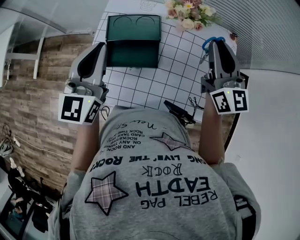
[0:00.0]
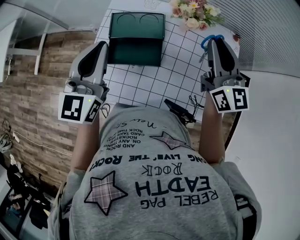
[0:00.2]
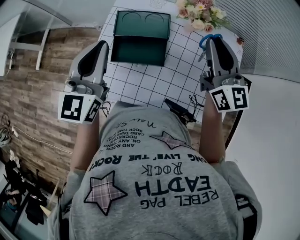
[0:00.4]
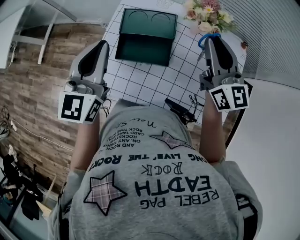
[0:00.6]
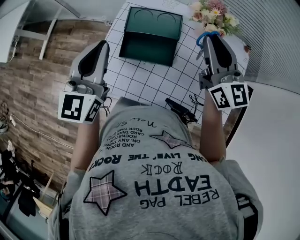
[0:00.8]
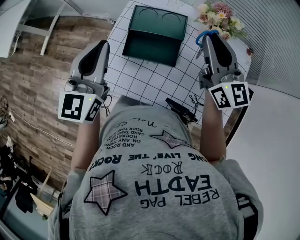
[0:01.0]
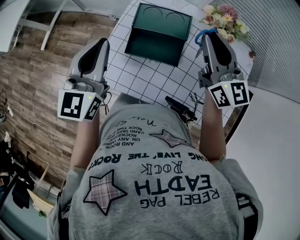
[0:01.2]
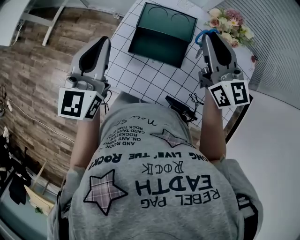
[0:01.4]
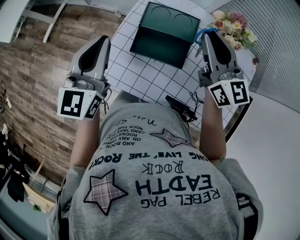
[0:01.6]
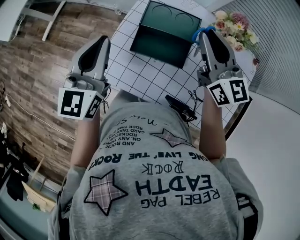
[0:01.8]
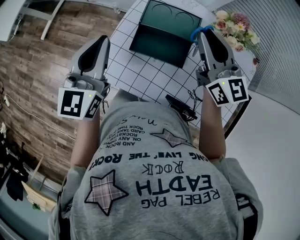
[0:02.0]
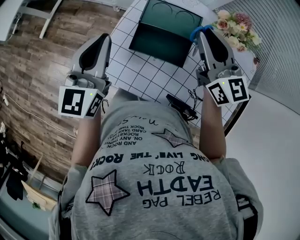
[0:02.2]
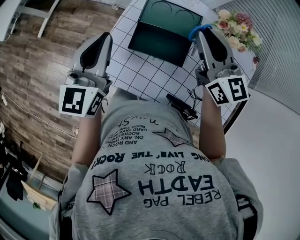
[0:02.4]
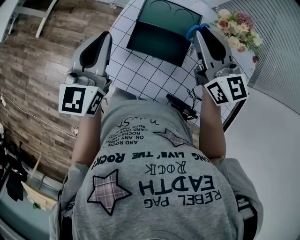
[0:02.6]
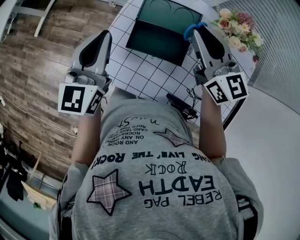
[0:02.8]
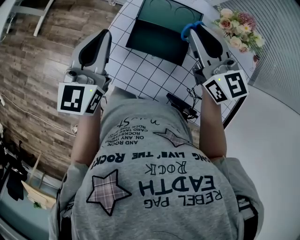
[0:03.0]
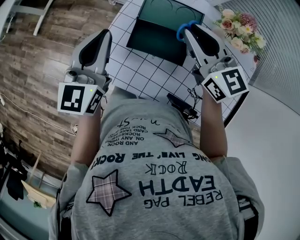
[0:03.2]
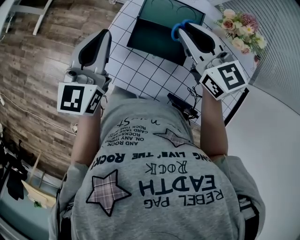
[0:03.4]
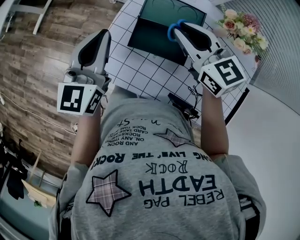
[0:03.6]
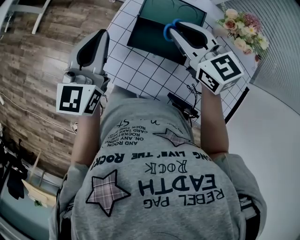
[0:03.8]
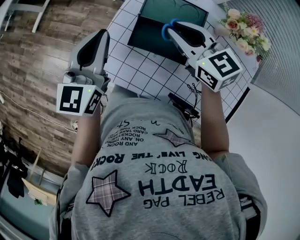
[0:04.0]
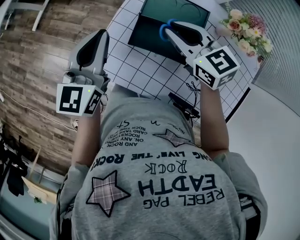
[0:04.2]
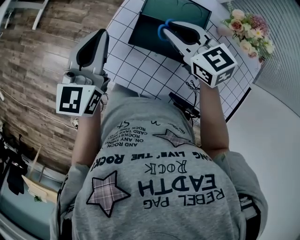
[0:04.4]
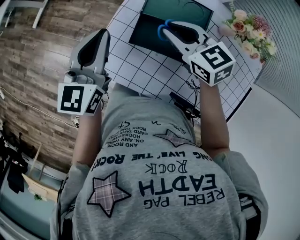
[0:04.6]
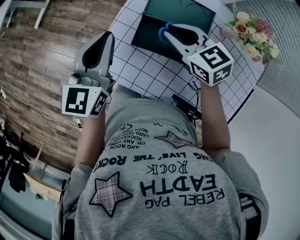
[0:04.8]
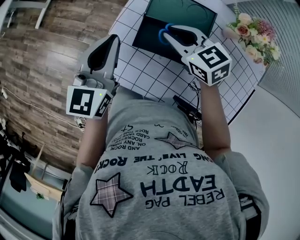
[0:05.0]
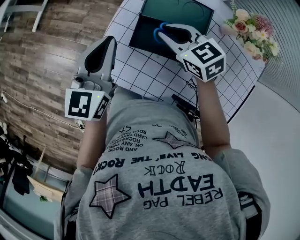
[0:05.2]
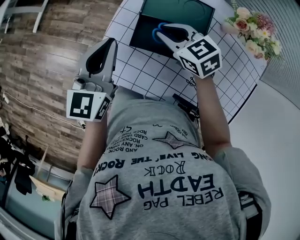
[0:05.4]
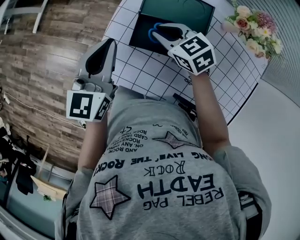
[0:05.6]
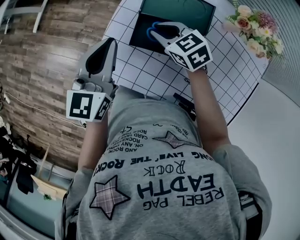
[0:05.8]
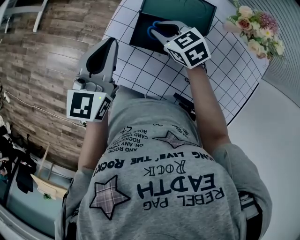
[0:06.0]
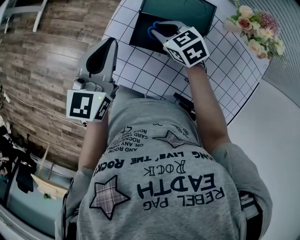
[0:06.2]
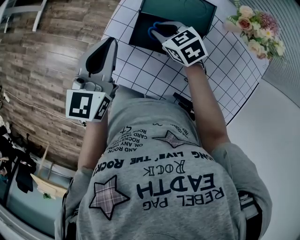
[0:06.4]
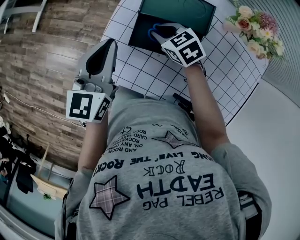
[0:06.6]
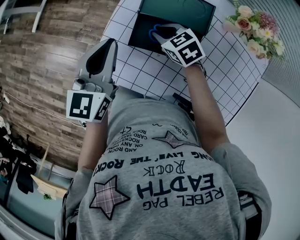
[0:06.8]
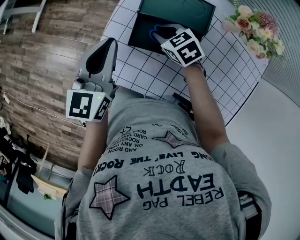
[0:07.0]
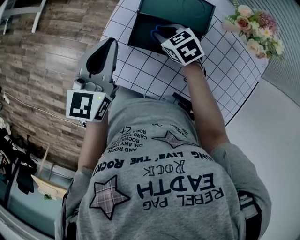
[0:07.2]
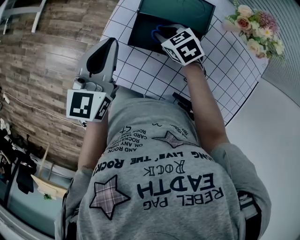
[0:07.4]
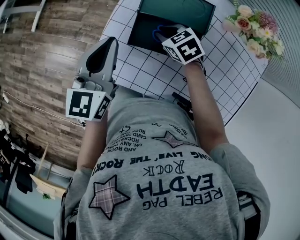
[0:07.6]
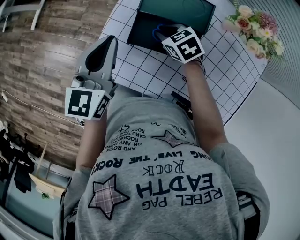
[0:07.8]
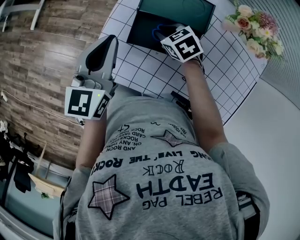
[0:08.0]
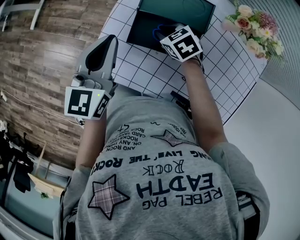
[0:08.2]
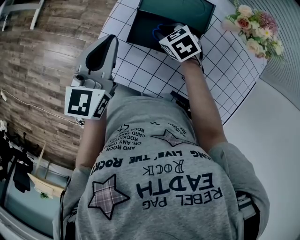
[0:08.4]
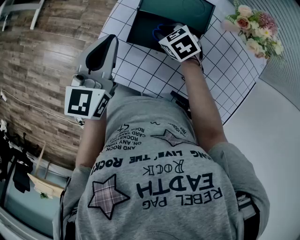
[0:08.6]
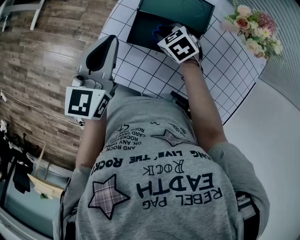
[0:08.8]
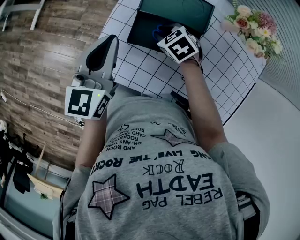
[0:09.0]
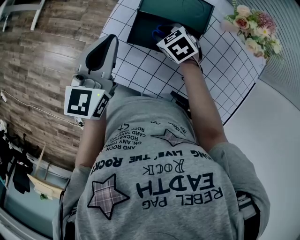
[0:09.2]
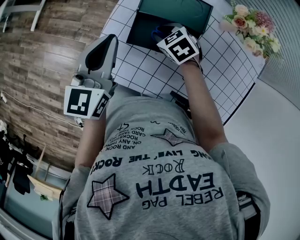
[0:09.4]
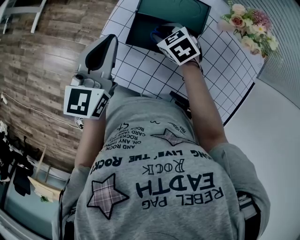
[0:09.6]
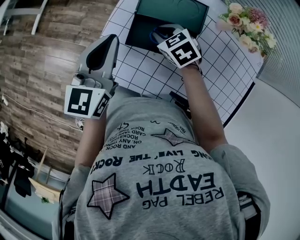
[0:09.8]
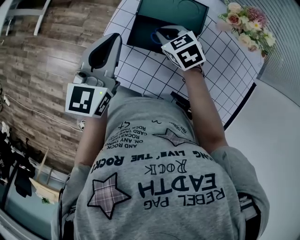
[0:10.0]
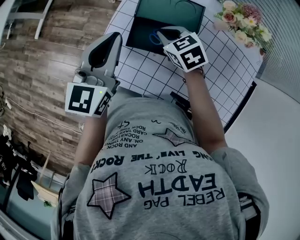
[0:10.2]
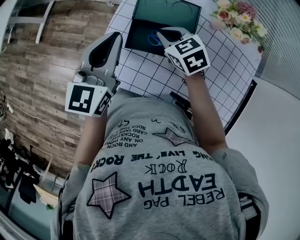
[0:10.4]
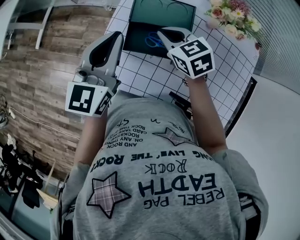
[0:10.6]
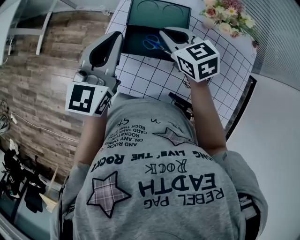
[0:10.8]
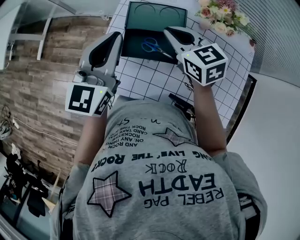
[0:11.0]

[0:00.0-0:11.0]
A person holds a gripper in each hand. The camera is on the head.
0:00.0 to 0:01.6: The two grippers go roughly 10 cm to the left. The right gripper changes its angle by about 20 degrees.
0:01.6 to 0:03.2: The left gripper shifts by approximately 5 cm. The right gripper goes about 10 cm downward and to the left.
0:03.2 to 0:04.8: The right gripper is displaced downward and to the left by some 10 cm, and turns by about 20 degrees.
0:04.8 to 0:06.2: The right gripper goes about 10 cm downward.
0:06.2 to 0:09.4: The grippers stay close to where they were, moving slightly.
0:09.4 to 0:11.0: The left gripper goes some 10 cm upward and to the right. Meanwhile the right gripper shifts some 20 cm upward, swivels approximately 40 degrees, and closes up.

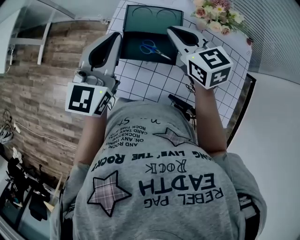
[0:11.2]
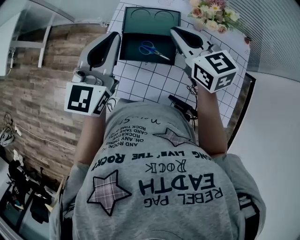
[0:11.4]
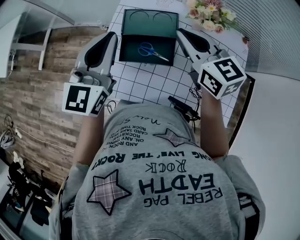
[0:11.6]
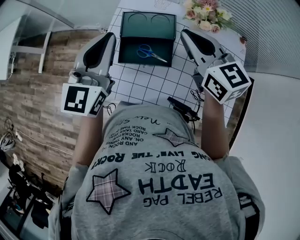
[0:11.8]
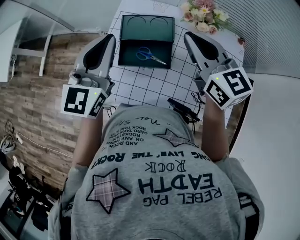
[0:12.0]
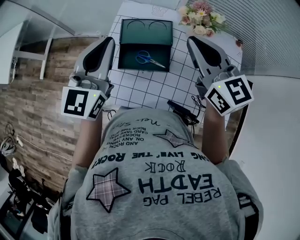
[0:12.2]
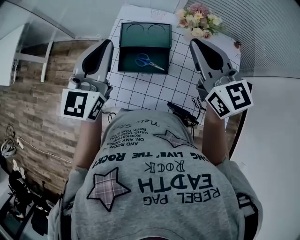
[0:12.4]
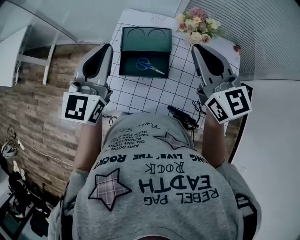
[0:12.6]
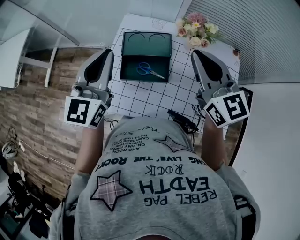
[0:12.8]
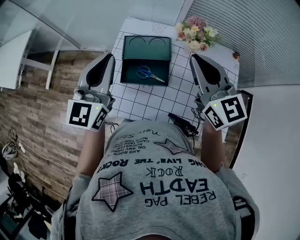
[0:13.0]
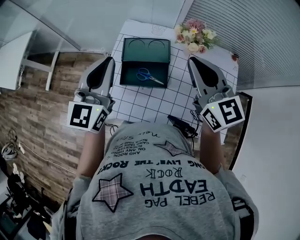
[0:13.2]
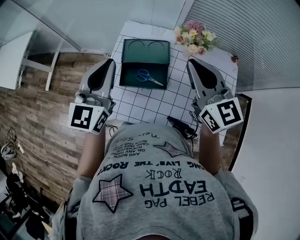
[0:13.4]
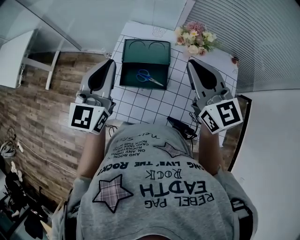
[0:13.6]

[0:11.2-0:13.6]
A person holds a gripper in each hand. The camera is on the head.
0:11.2 to 0:12.4: The left gripper is displaced upward by roughly 5 cm. The right gripper is displaced upward, to the right and backward by some 15 cm, and rotates approximately 20 degrees.
0:12.4 to 0:13.6: There are only small adjustments of the grippers.

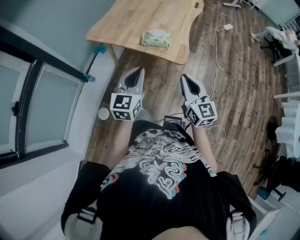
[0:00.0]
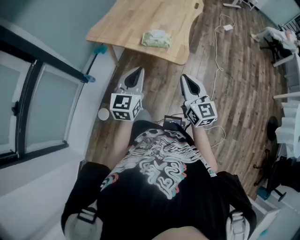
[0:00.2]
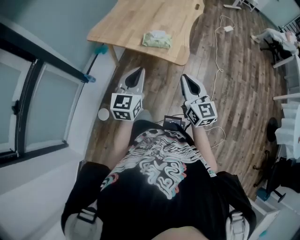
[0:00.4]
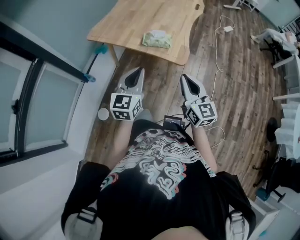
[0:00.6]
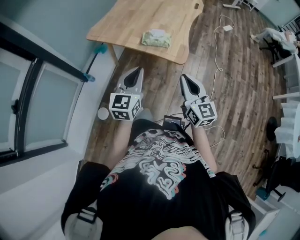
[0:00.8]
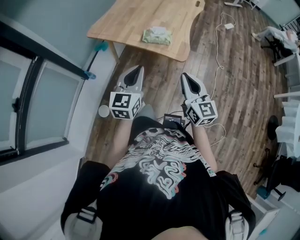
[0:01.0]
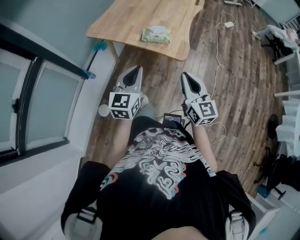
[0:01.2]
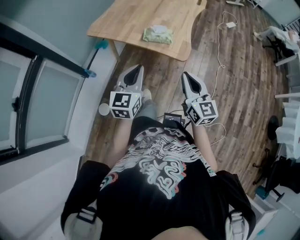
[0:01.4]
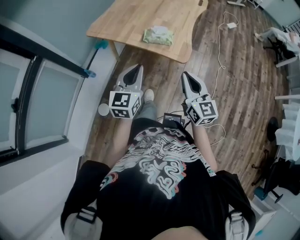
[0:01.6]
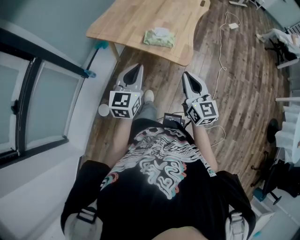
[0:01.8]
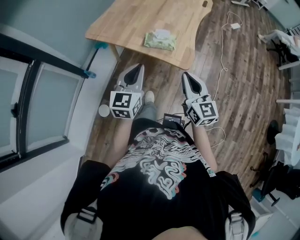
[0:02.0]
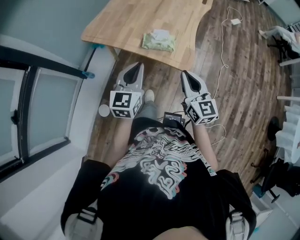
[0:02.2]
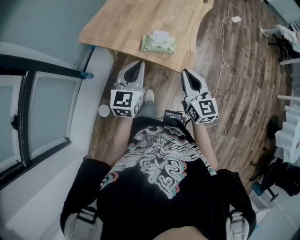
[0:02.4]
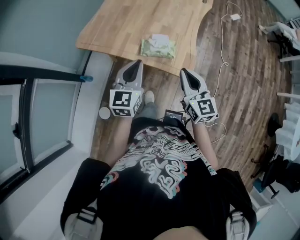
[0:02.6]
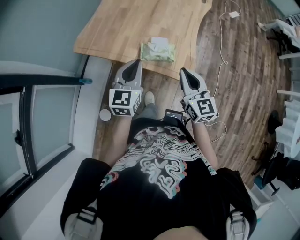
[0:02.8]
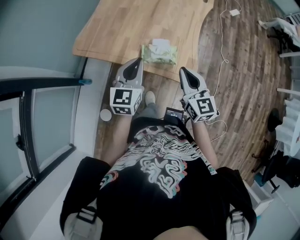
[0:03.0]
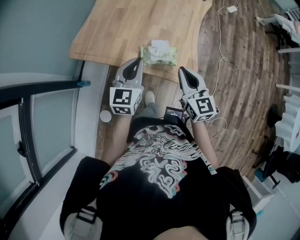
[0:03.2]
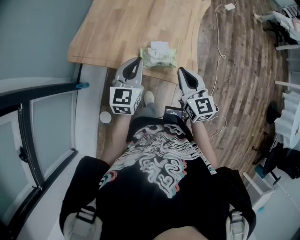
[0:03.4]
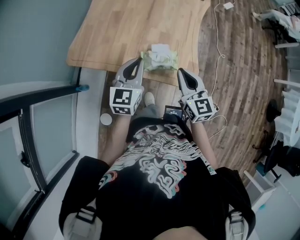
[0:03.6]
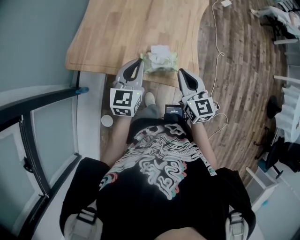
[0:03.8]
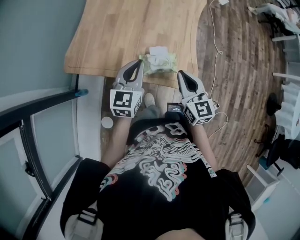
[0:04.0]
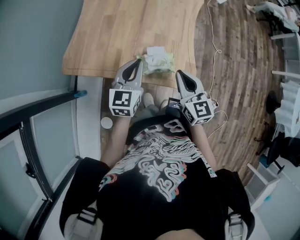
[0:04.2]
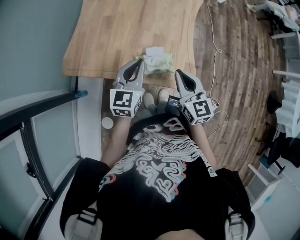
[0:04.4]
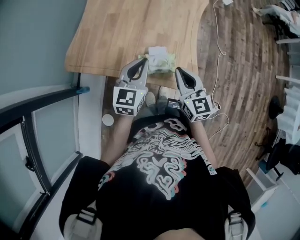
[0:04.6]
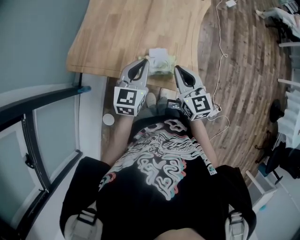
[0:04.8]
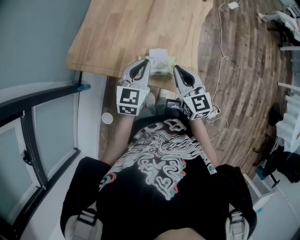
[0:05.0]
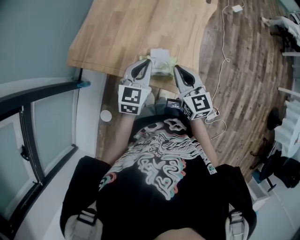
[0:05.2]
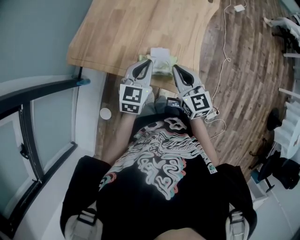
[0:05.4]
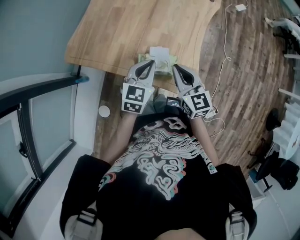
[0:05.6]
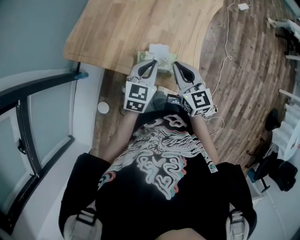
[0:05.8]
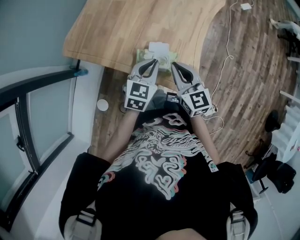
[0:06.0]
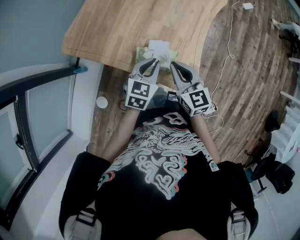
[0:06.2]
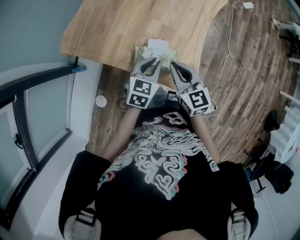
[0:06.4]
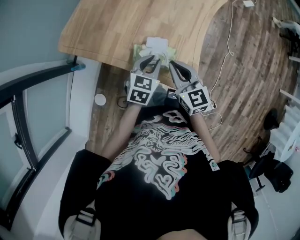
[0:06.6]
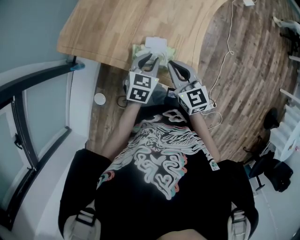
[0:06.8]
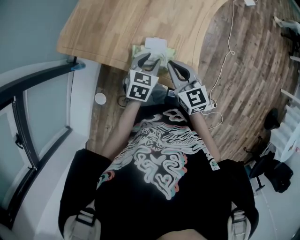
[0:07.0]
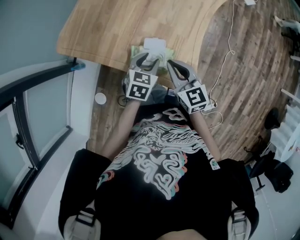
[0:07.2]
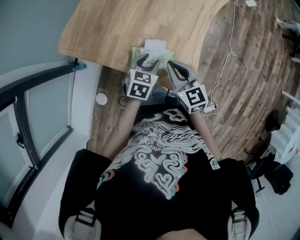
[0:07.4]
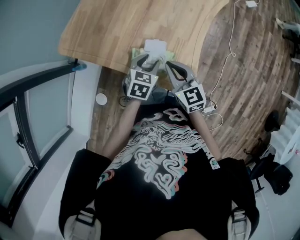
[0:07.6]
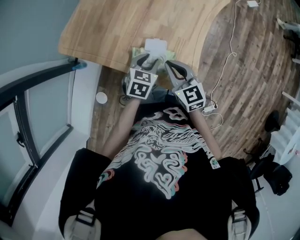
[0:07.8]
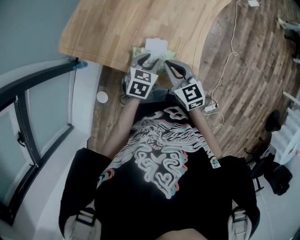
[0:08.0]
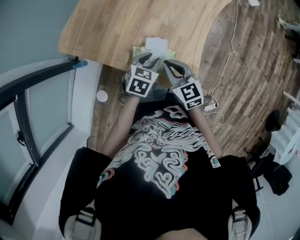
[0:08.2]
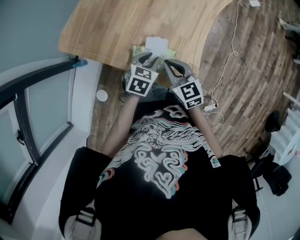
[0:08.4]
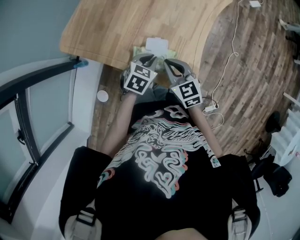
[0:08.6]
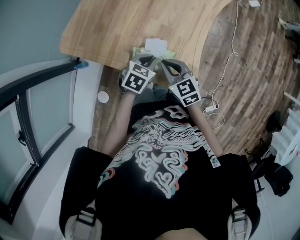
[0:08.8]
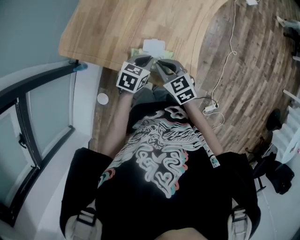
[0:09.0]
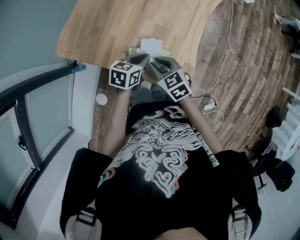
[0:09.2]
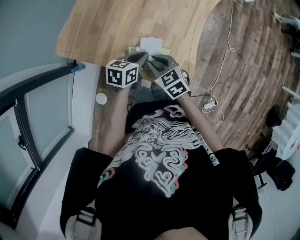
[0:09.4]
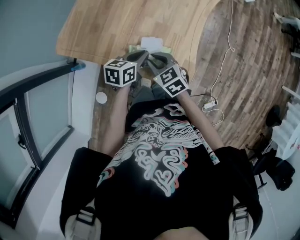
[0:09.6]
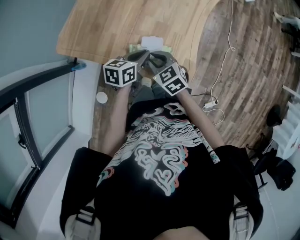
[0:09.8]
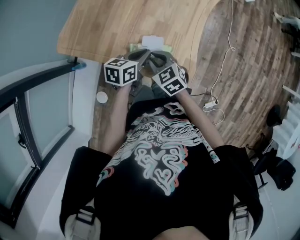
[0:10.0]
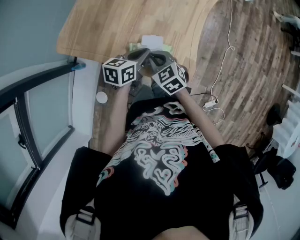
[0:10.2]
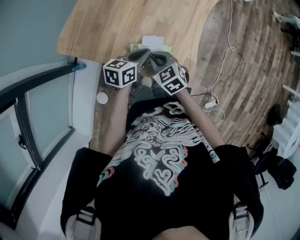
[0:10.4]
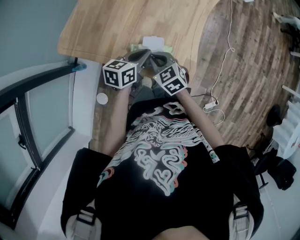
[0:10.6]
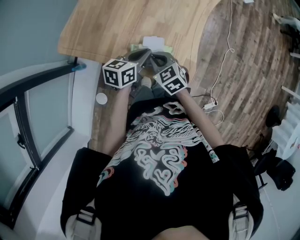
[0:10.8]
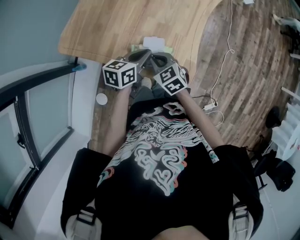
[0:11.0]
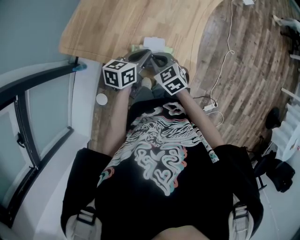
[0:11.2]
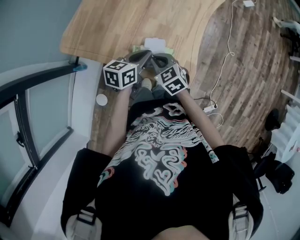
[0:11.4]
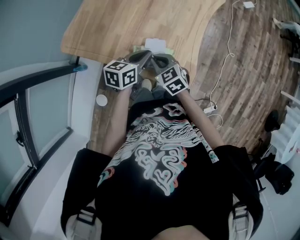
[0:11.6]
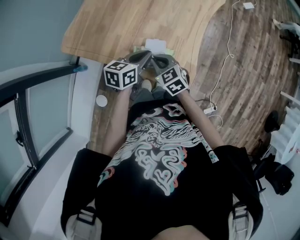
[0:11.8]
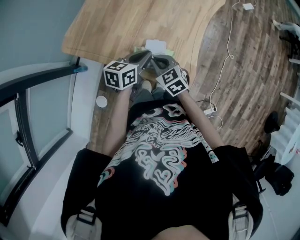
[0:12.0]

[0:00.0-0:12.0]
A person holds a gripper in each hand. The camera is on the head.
0:00.0 to 0:01.6: The grippers stay close to where they were, moving slightly.
0:01.6 to 0:03.0: The two grippers go some 25 cm forward.
0:03.0 to 0:04.4: The two grippers go approximately 5 cm forward.
0:04.4 to 0:06.0: The left gripper travels downward and to the right by roughly 10 cm, while the right gripper shifts by about 5 cm.
0:06.0 to 0:07.6: The left gripper heads downward, covering some 10 cm, and opens up.
0:07.6 to 0:09.0: The left gripper closes up; the right gripper moves approximately 5 cm.
0:09.0 to 0:10.4: The left gripper turns by some 20 degrees.
0:10.4 to 0:12.0: The grippers make only small movements.
